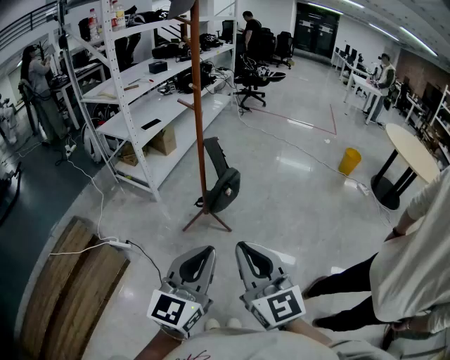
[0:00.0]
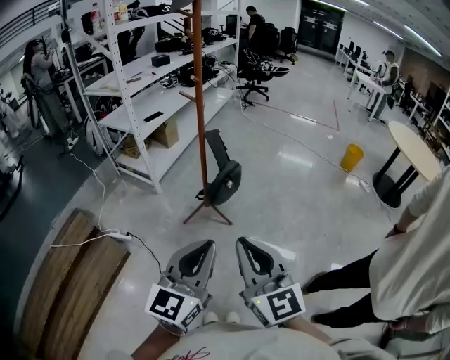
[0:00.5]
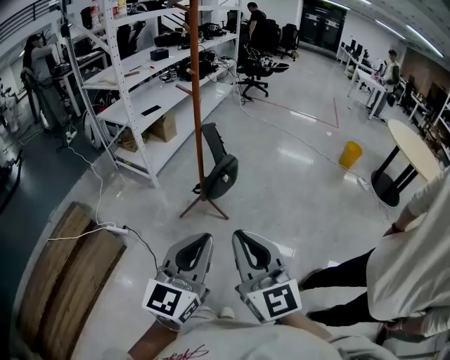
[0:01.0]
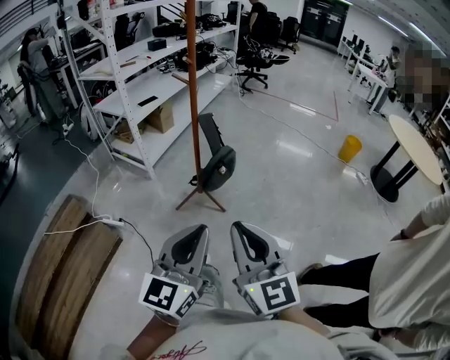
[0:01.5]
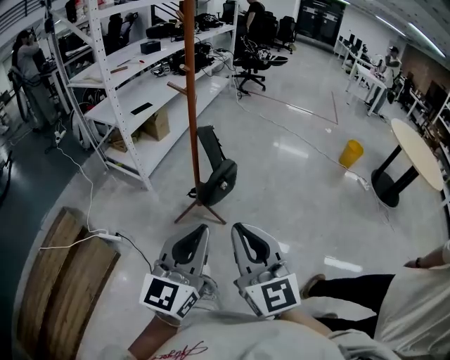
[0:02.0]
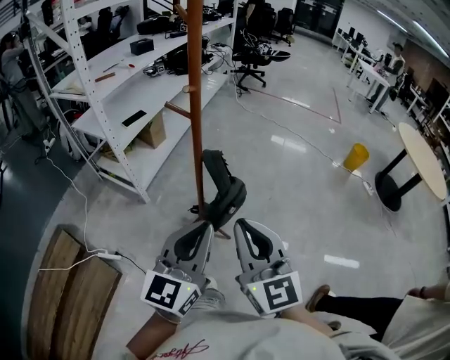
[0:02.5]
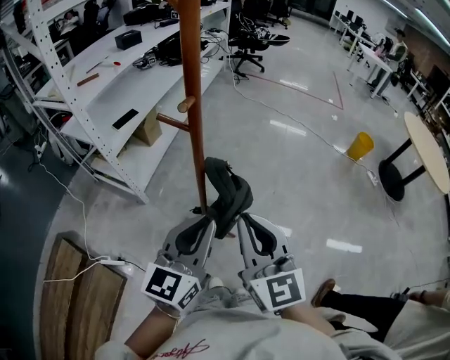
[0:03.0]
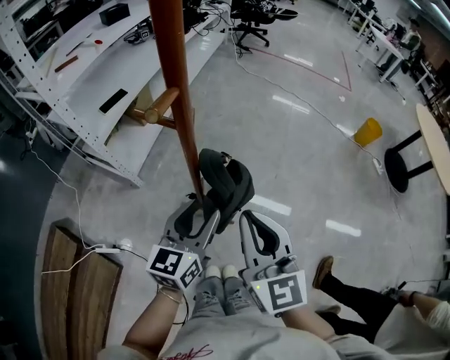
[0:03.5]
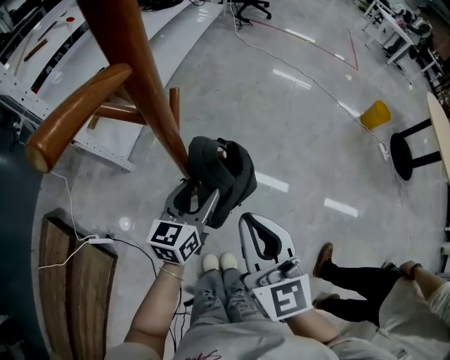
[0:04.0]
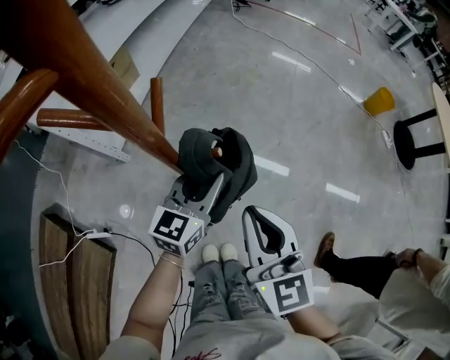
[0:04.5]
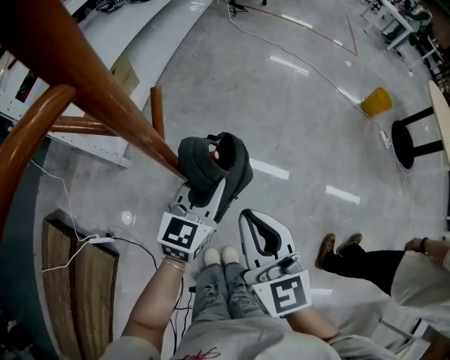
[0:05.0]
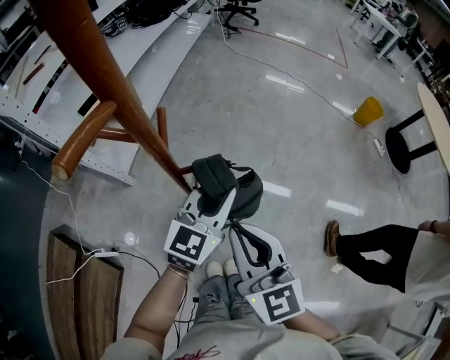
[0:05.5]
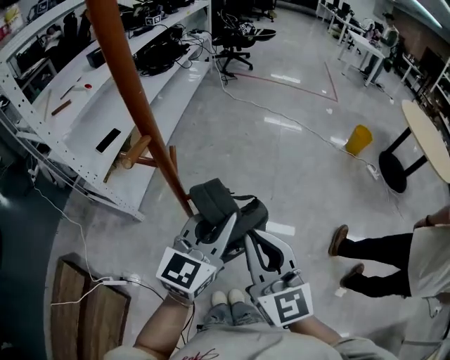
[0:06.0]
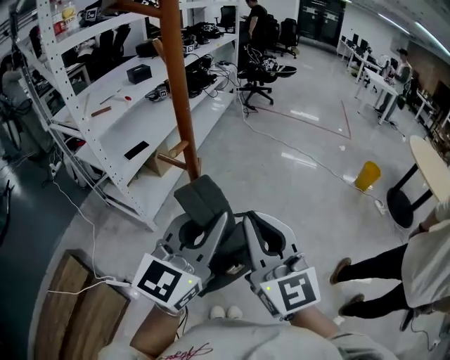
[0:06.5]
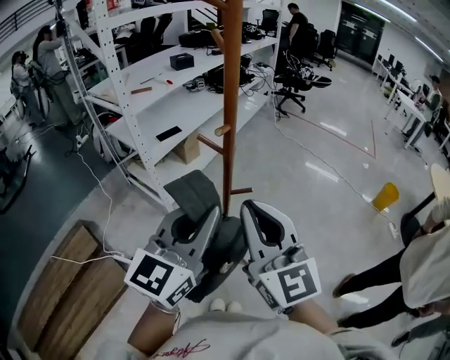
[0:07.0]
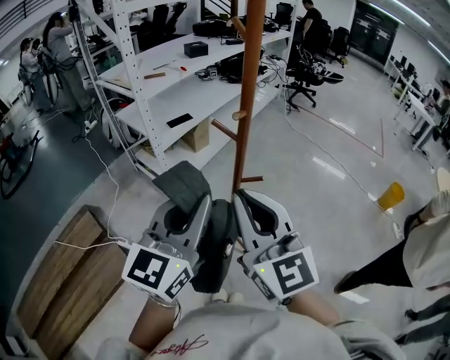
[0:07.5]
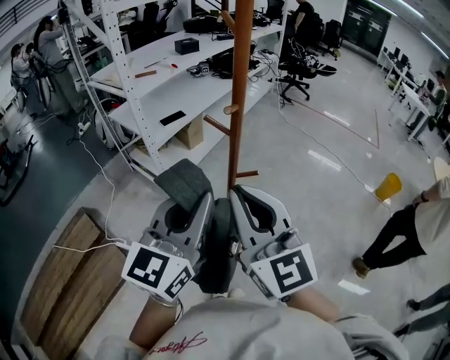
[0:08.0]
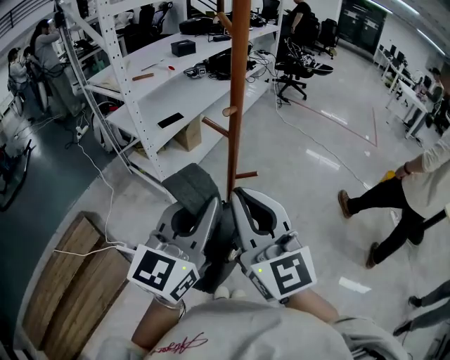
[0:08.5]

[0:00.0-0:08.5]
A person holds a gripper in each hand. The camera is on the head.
0:00.0 to 0:02.0: Both grippers travel together forward, approximately 10 cm.
0:02.0 to 0:04.0: The left gripper is displaced forward and downward by roughly 50 cm, rotates roughly 30 degrees, and opens its fingers, while the right gripper travels forward by roughly 35 cm.
0:04.0 to 0:06.5: The left gripper shifts about 35 cm upward, rotates roughly 30 degrees, and closes its fingers; the right gripper heads upward, covering roughly 20 cm, and turns by some 20 degrees.
0:06.5 to 0:08.5: The grippers both shift to the left by approximately 10 cm.

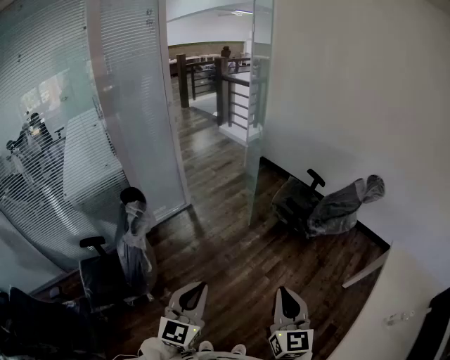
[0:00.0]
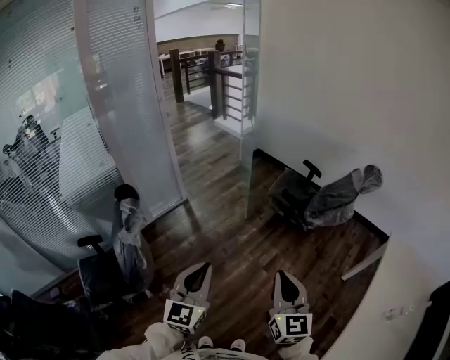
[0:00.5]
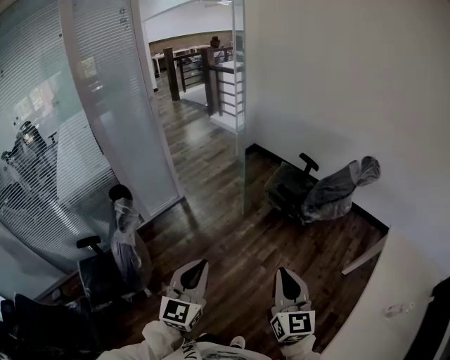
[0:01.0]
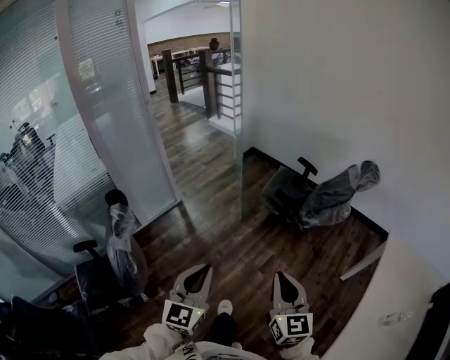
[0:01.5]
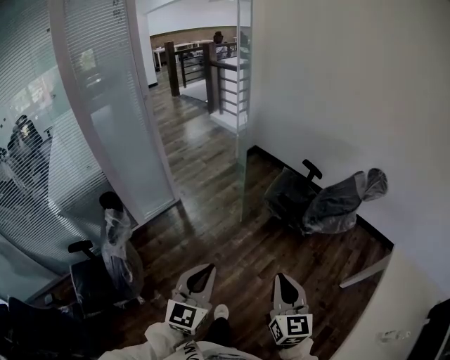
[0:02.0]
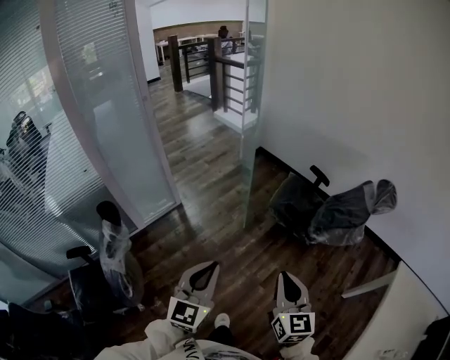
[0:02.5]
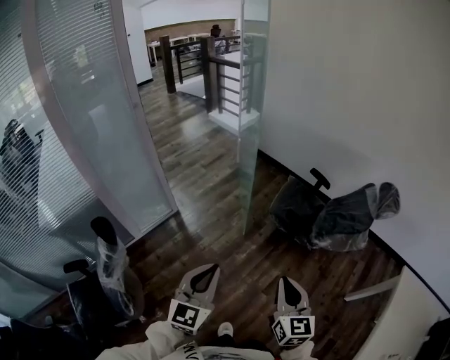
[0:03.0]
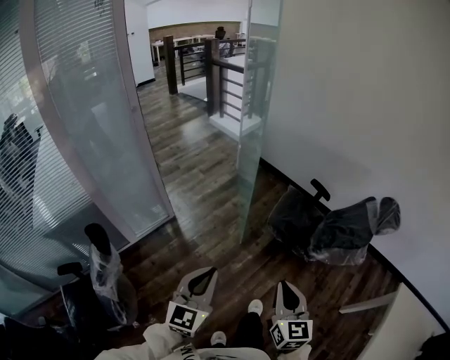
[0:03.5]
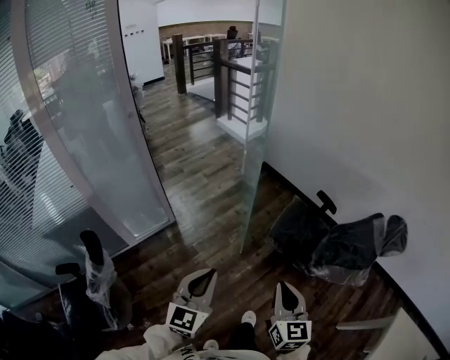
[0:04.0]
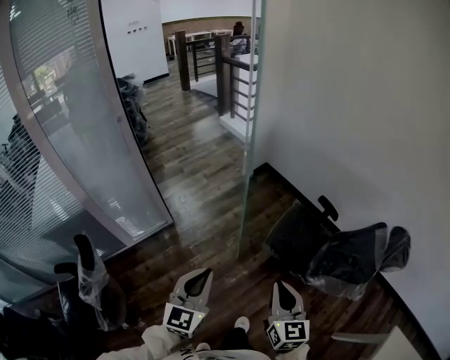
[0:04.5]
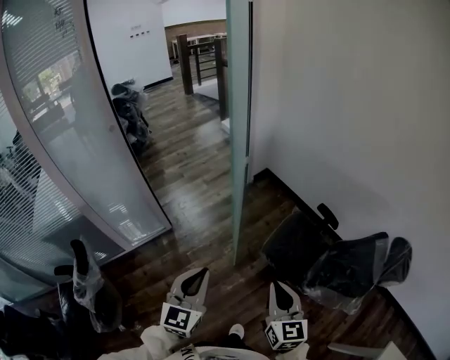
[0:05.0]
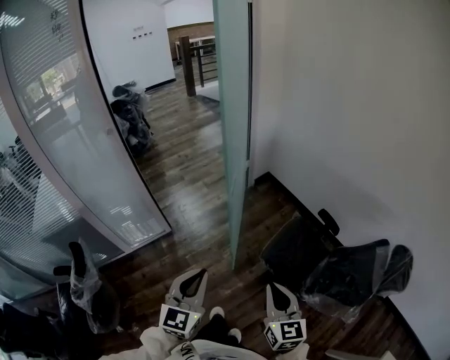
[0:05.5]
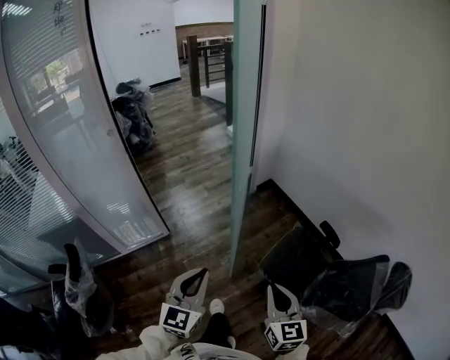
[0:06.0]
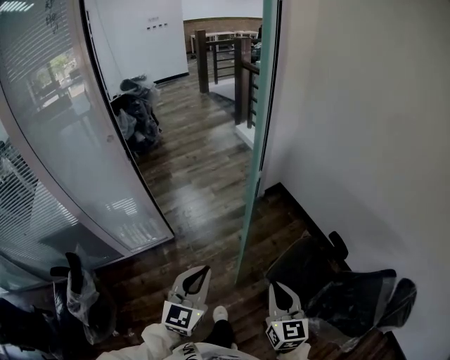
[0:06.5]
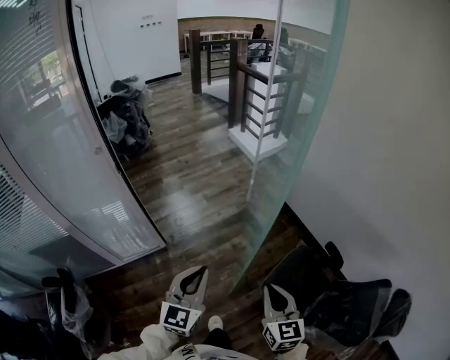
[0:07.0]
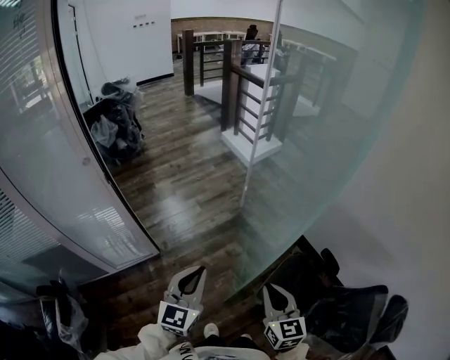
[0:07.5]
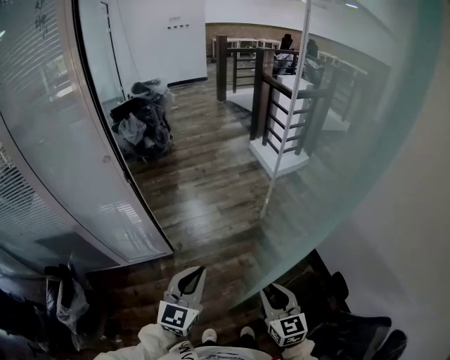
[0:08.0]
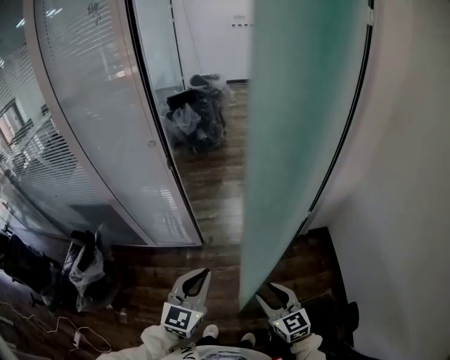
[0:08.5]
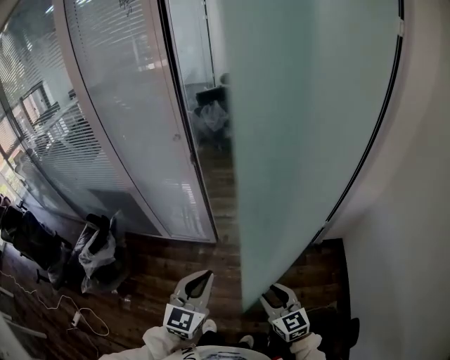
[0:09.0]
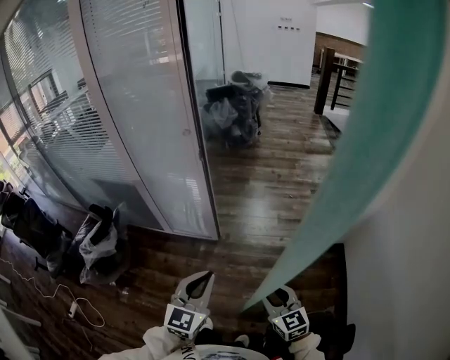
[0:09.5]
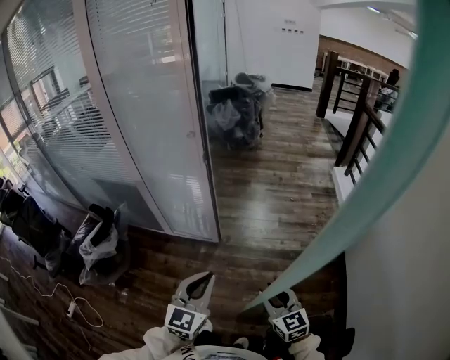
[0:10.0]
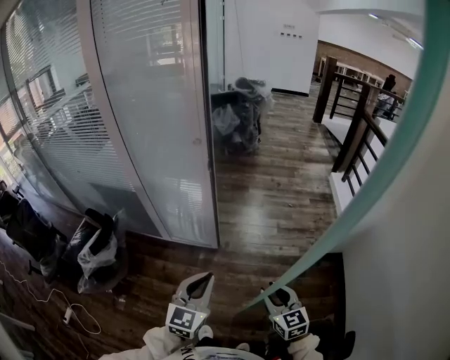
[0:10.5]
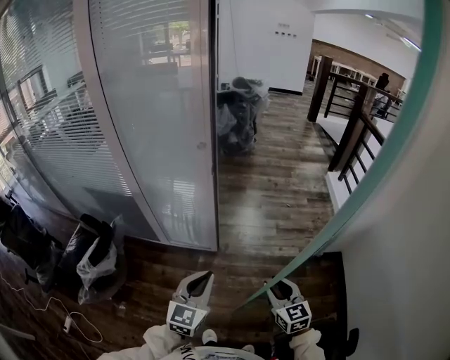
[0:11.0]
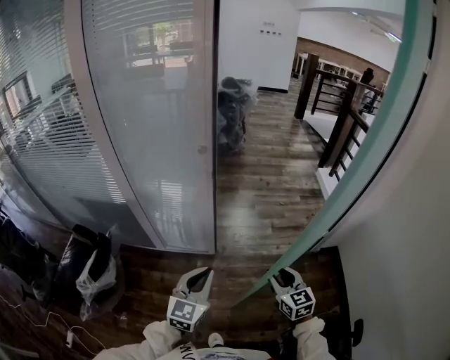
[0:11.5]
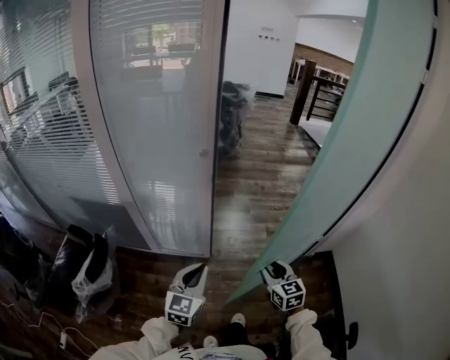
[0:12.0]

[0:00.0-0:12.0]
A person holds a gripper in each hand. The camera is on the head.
0:00.0 to 0:02.0: The right gripper heads forward, covering roughly 15 cm. Meanwhile the left gripper goes about 20 cm forward and to the right.
0:02.0 to 0:04.0: Both grippers move forward, approximately 30 cm.
0:04.0 to 0:06.0: The right gripper moves forward, some 20 cm; the left gripper travels forward and to the right by some 20 cm.
0:06.0 to 0:08.0: The grippers both shift forward by approximately 25 cm. The right gripper rotates approximately 20 degrees.
0:08.0 to 0:10.0: The right gripper changes place by about 10 cm, and turns by roughly 40 degrees, while the left gripper ends up about 10 cm from where it was, and rotates about 30 degrees.
0:10.0 to 0:12.0: The right gripper travels forward and to the left by roughly 20 cm. Meanwhile the left gripper heads to the left and forward, covering approximately 20 cm.

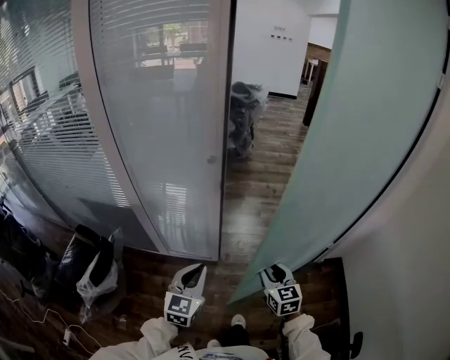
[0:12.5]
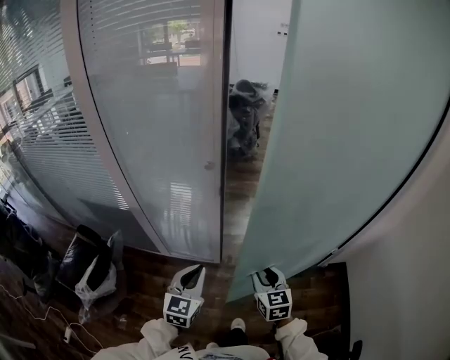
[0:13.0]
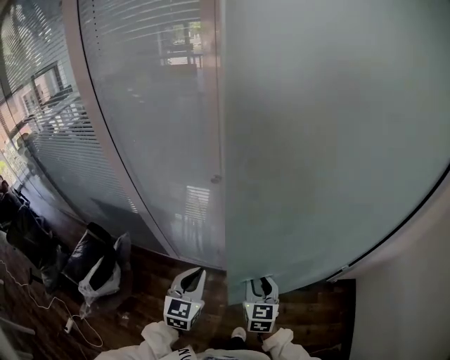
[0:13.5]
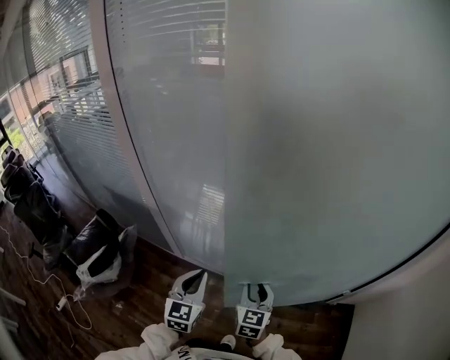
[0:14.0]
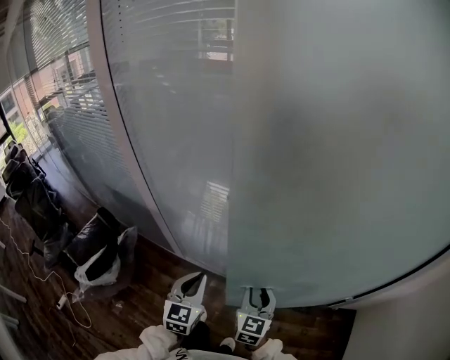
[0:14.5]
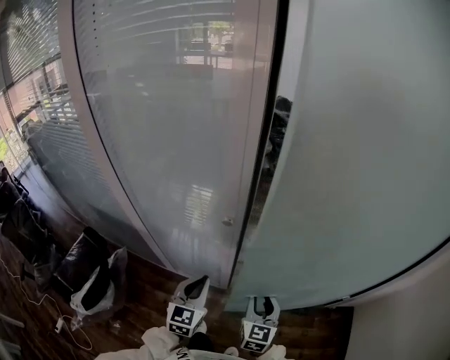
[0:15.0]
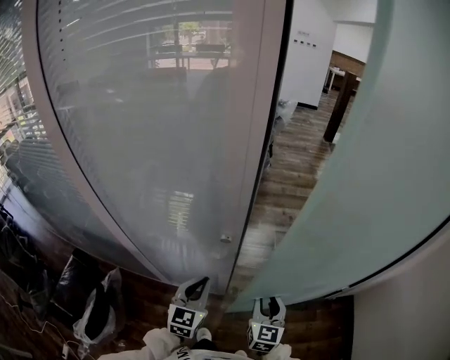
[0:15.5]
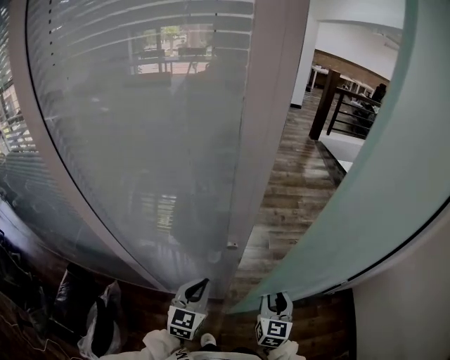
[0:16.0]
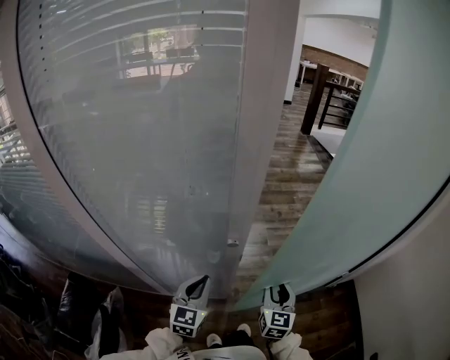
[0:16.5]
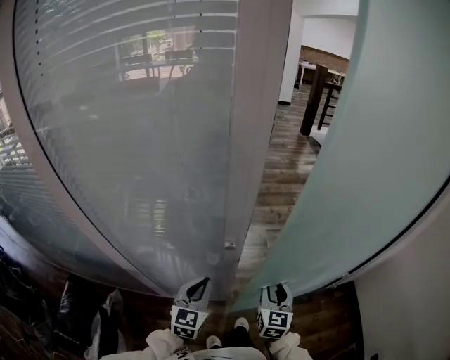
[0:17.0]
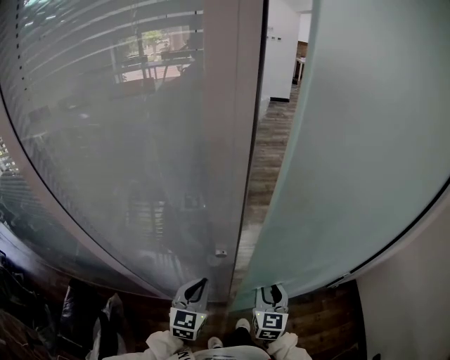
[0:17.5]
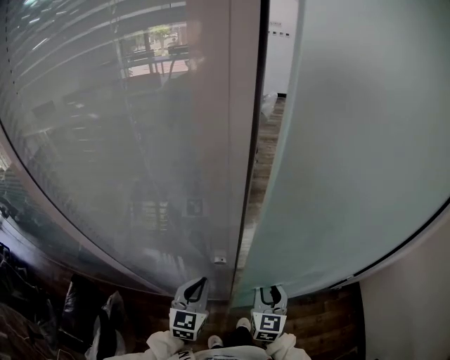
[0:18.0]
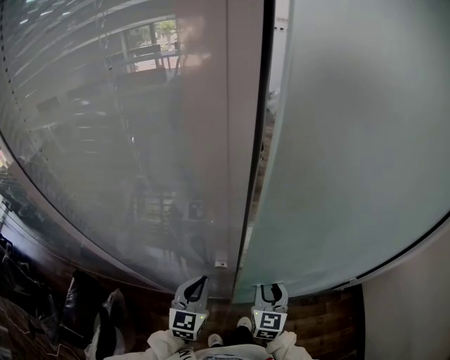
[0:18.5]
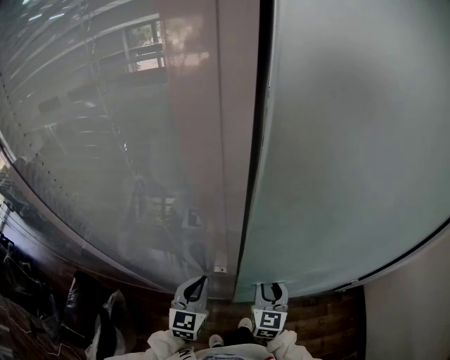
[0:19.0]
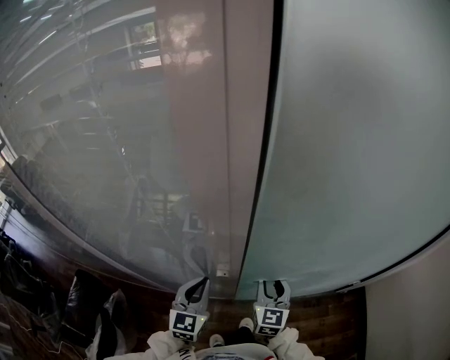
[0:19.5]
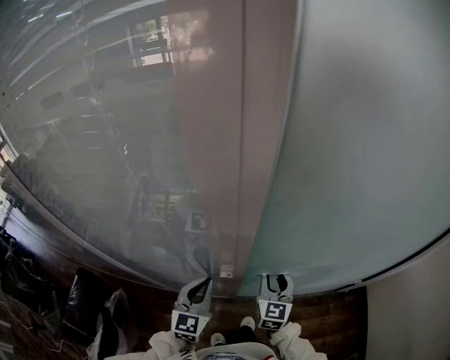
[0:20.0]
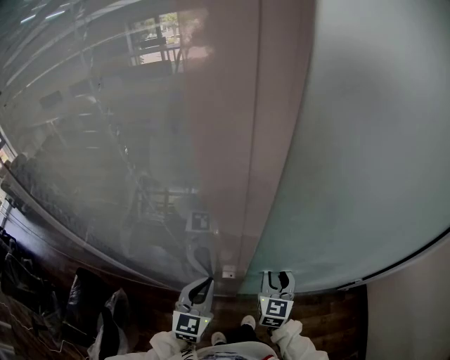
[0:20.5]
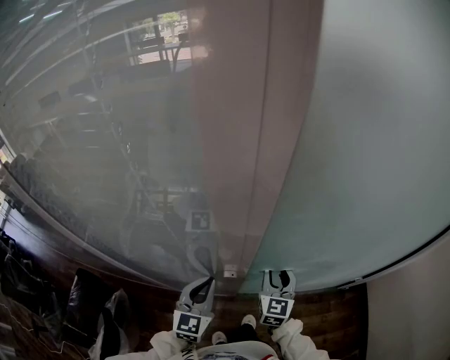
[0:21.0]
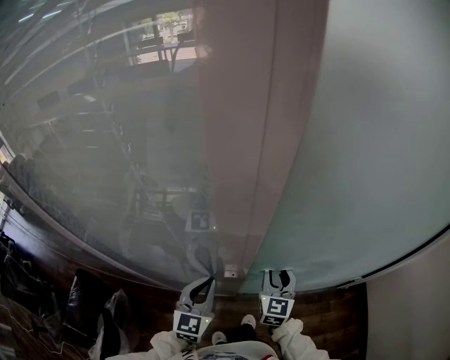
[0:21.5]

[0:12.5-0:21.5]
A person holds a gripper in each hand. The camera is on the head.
0:12.5 to 0:14.5: The two grippers go approximately 15 cm forward.
0:14.5 to 0:17.0: The left gripper is displaced forward and to the left by approximately 15 cm, and changes its angle by roughly 20 degrees. The right gripper heads forward, covering some 10 cm.
0:17.0 to 0:19.5: The right gripper shifts roughly 10 cm forward. The left gripper travels forward by approximately 5 cm.
0:19.5 to 0:21.5: The grippers move only a little.
